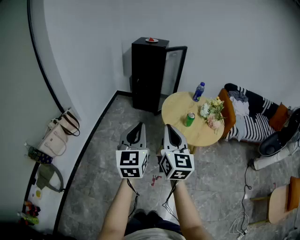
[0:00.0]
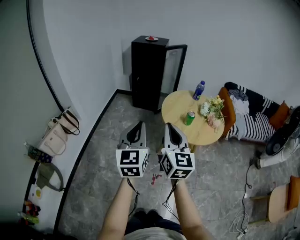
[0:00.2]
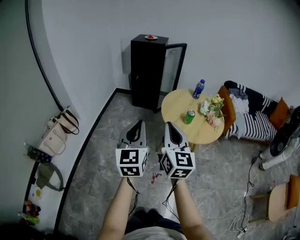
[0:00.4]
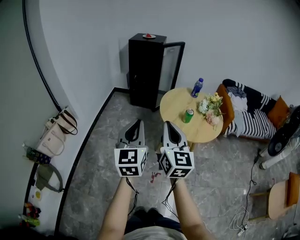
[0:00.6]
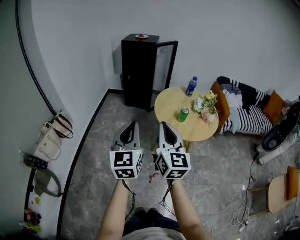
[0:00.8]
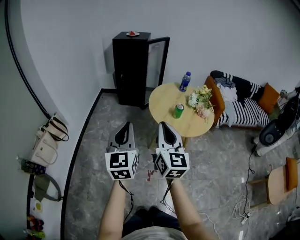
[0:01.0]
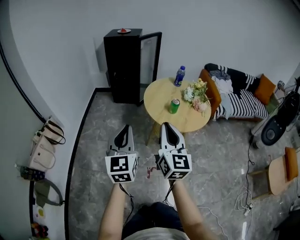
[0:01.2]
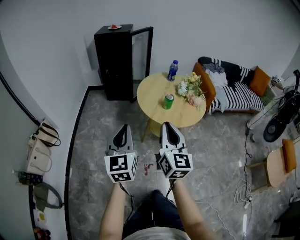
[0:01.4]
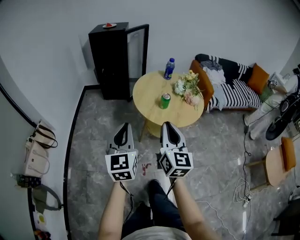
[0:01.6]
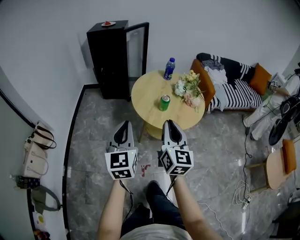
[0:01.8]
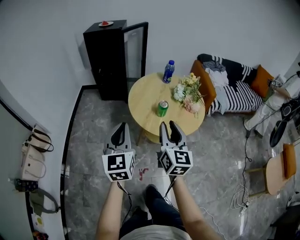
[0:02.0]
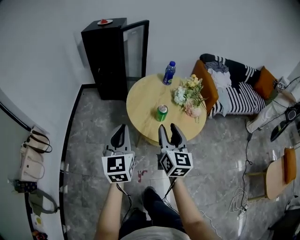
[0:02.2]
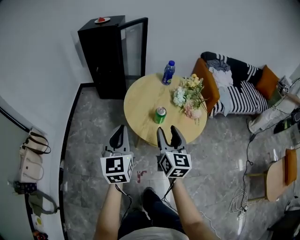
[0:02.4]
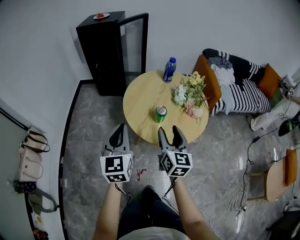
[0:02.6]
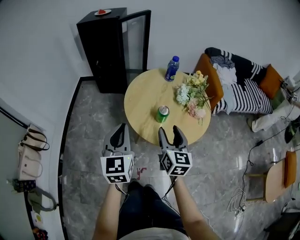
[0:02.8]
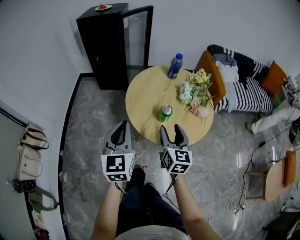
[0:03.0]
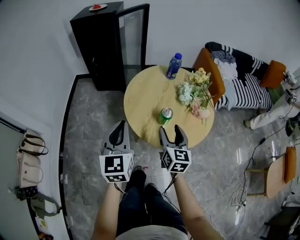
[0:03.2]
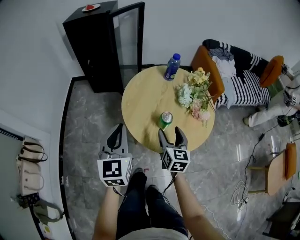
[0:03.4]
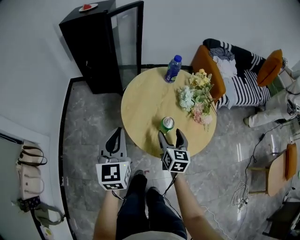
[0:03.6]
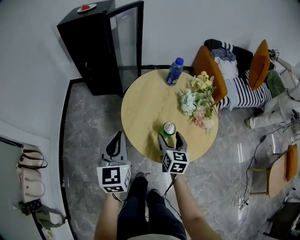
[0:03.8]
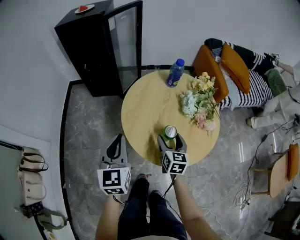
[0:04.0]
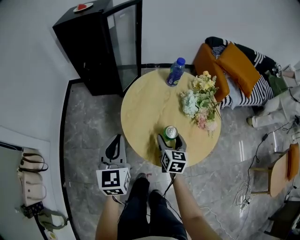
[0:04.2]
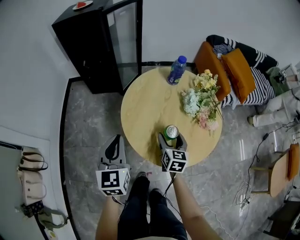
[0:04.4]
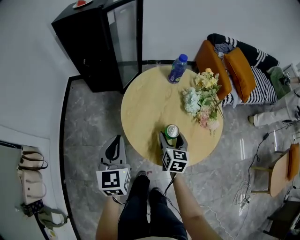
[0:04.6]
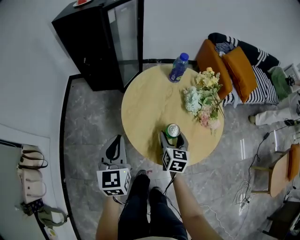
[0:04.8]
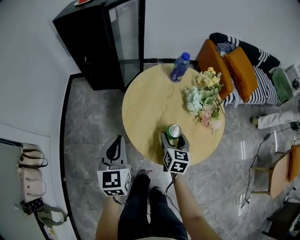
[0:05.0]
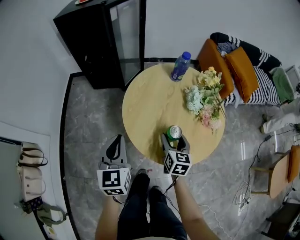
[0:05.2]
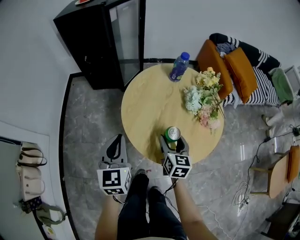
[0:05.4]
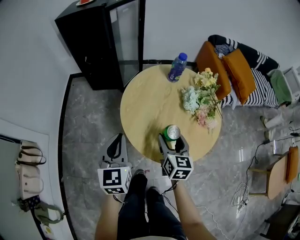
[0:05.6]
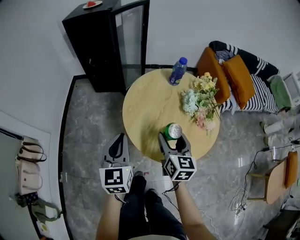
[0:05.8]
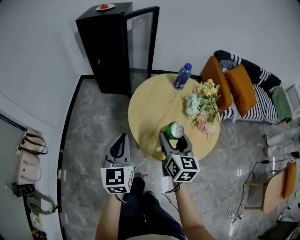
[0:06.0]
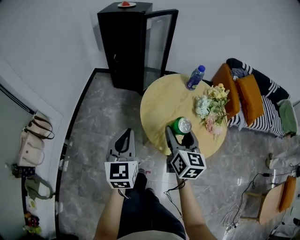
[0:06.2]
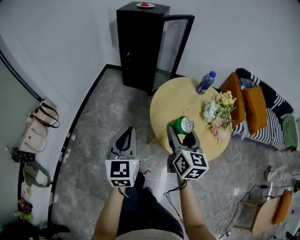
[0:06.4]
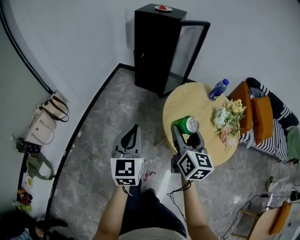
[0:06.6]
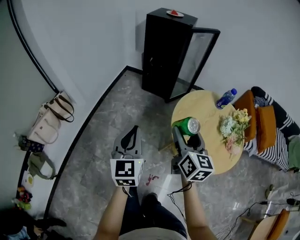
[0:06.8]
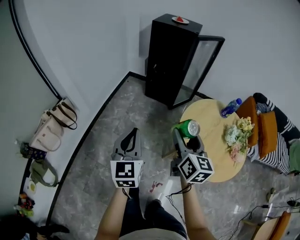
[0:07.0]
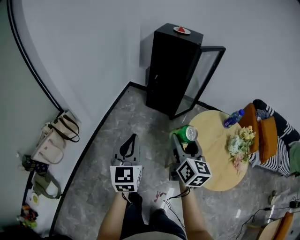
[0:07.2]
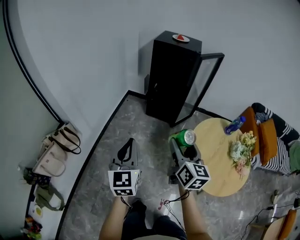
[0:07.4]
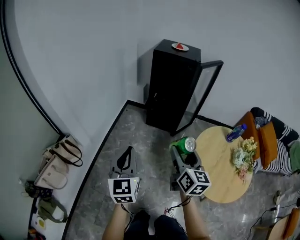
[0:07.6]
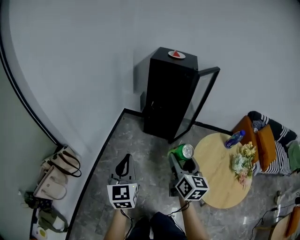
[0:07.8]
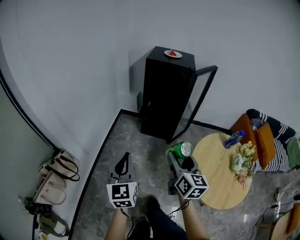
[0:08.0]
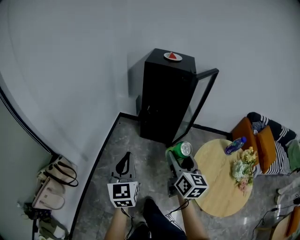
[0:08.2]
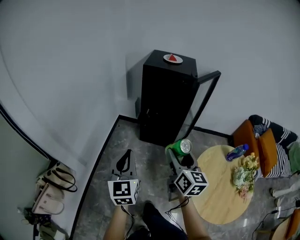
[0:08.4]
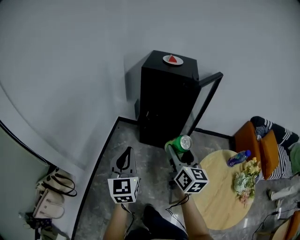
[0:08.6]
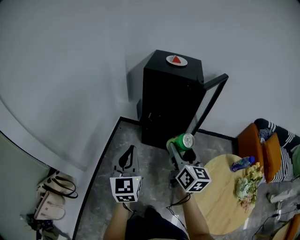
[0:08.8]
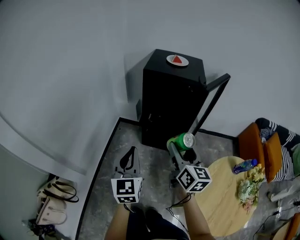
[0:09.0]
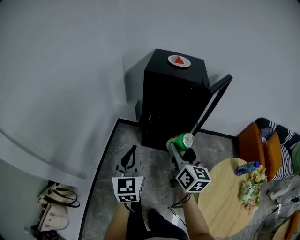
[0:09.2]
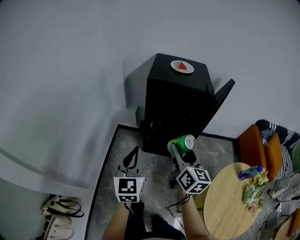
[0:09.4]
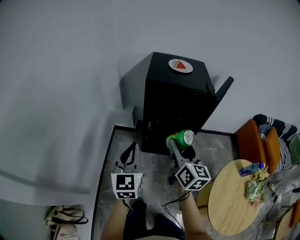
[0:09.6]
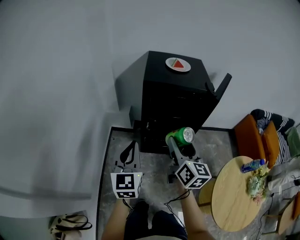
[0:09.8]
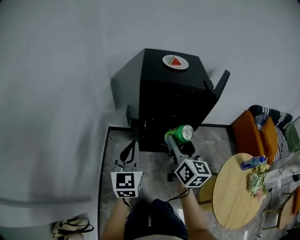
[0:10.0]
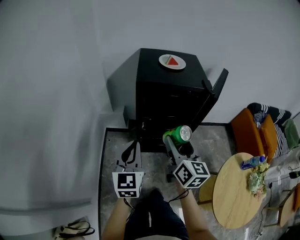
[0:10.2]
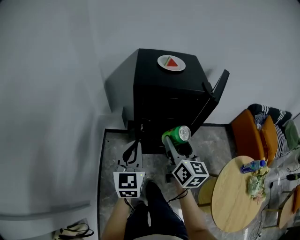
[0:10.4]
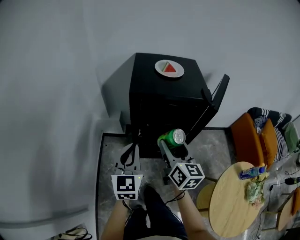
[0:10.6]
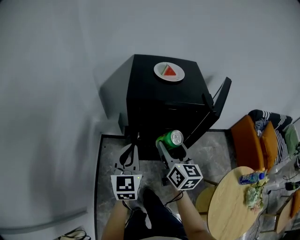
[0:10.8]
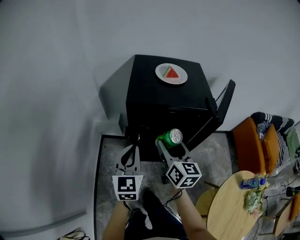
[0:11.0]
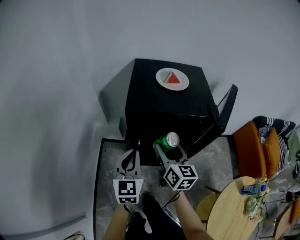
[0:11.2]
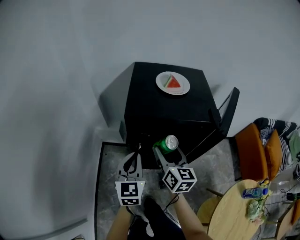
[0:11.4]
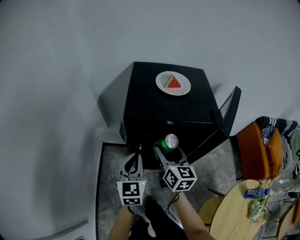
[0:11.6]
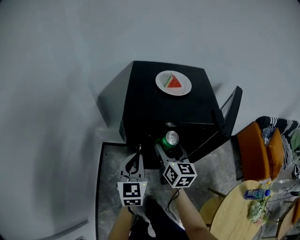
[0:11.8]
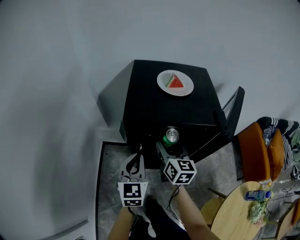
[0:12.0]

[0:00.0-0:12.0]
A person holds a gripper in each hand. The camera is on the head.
0:00.0 to 0:01.6: The right gripper heads to the right and downward, covering approximately 10 cm. Meanwhile the left gripper goes some 10 cm downward and to the right.
0:01.6 to 0:03.0: The left gripper moves forward, some 20 cm. Meanwhile the right gripper heads forward and downward, covering roughly 25 cm, and opens its fingers.
0:03.0 to 0:04.4: The right gripper shifts roughly 20 cm downward and forward. The left gripper moves forward and downward, approximately 15 cm.
0:04.4 to 0:06.0: The left gripper travels backward by about 5 cm, while the right gripper goes about 15 cm upward.
0:06.0 to 0:07.6: The left gripper goes roughly 35 cm to the left. Meanwhile the right gripper goes some 35 cm to the left and forward.
0:07.6 to 0:09.0: Both grippers travel together forward, about 30 cm.
0:09.0 to 0:10.4: Both grippers move forward, about 20 cm.
0:10.4 to 0:12.0: Both grippers move forward and downward, approximately 20 cm.

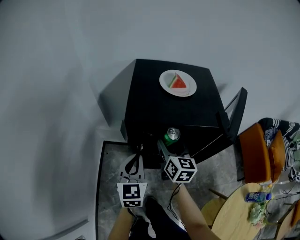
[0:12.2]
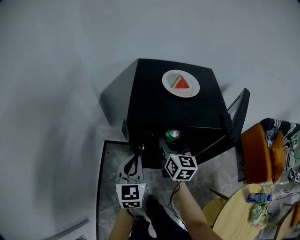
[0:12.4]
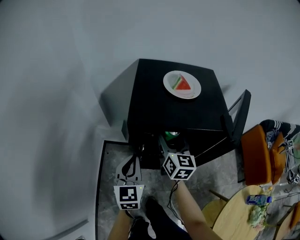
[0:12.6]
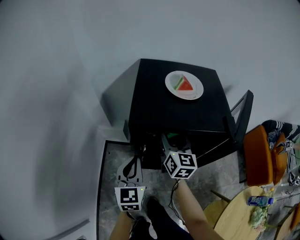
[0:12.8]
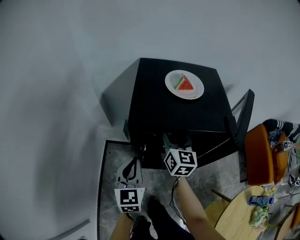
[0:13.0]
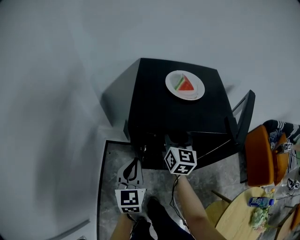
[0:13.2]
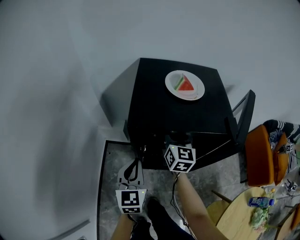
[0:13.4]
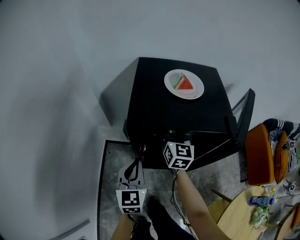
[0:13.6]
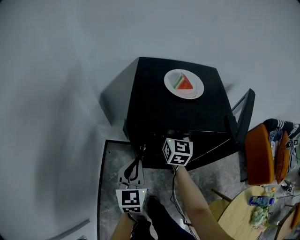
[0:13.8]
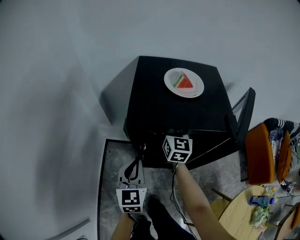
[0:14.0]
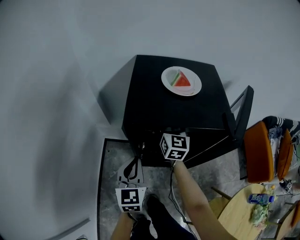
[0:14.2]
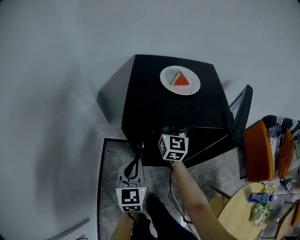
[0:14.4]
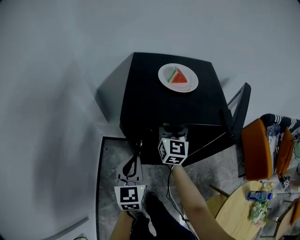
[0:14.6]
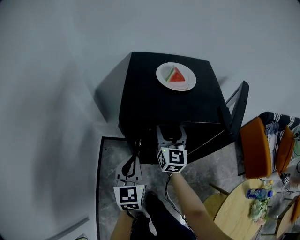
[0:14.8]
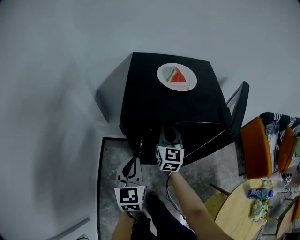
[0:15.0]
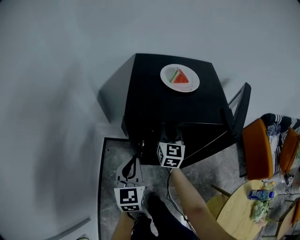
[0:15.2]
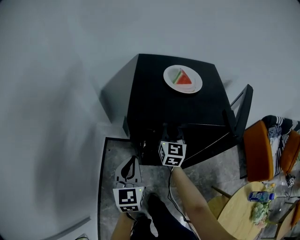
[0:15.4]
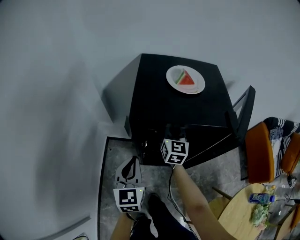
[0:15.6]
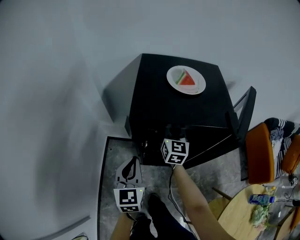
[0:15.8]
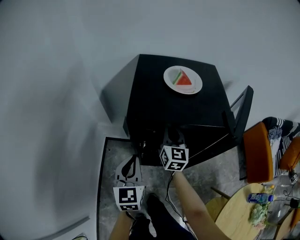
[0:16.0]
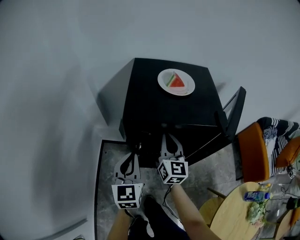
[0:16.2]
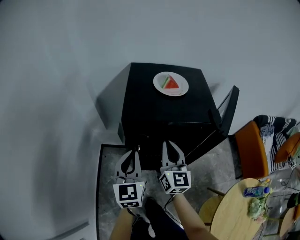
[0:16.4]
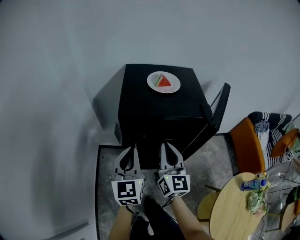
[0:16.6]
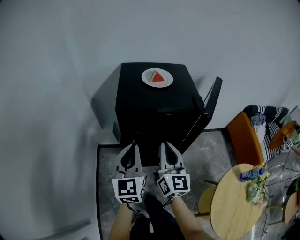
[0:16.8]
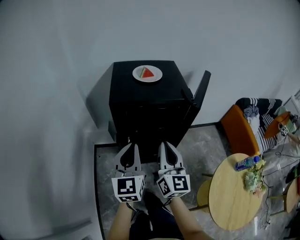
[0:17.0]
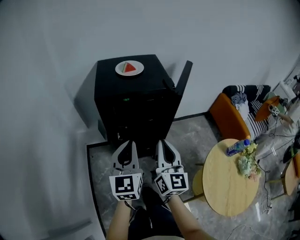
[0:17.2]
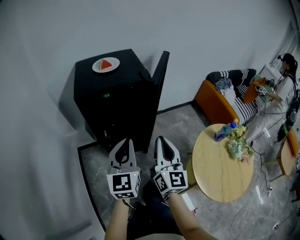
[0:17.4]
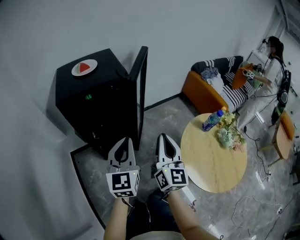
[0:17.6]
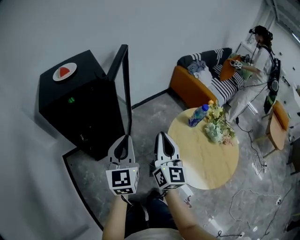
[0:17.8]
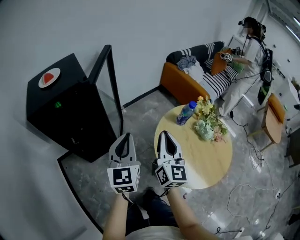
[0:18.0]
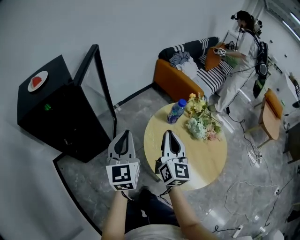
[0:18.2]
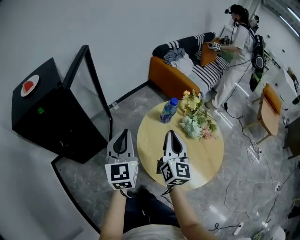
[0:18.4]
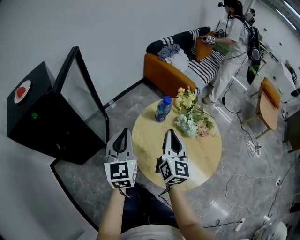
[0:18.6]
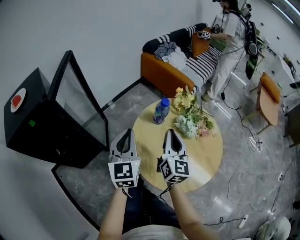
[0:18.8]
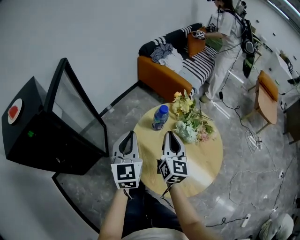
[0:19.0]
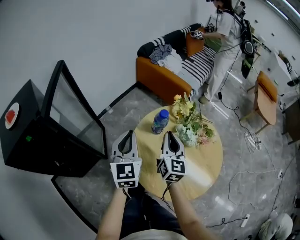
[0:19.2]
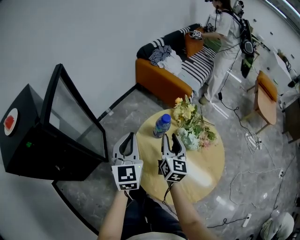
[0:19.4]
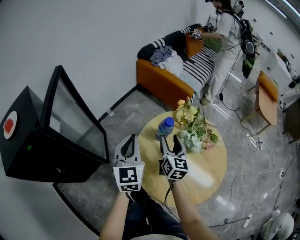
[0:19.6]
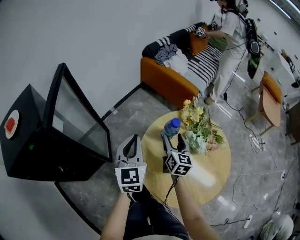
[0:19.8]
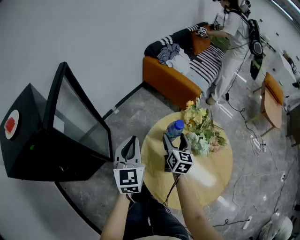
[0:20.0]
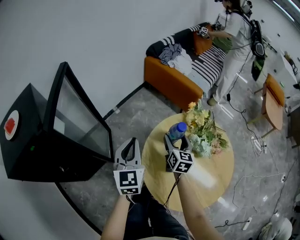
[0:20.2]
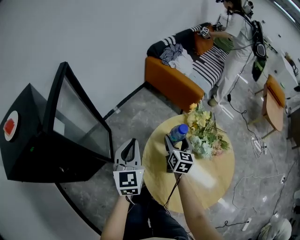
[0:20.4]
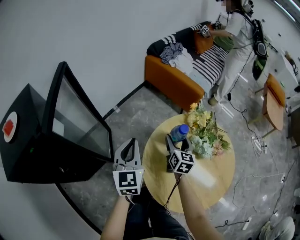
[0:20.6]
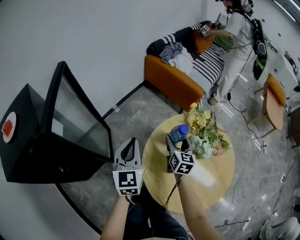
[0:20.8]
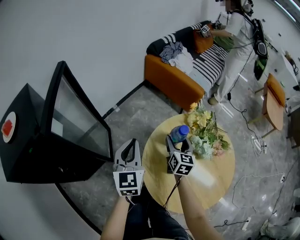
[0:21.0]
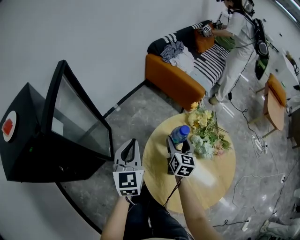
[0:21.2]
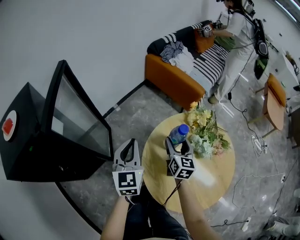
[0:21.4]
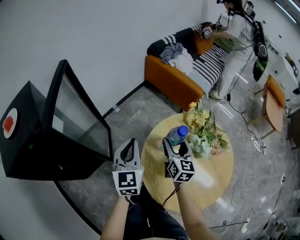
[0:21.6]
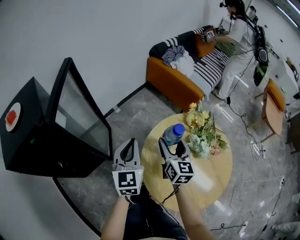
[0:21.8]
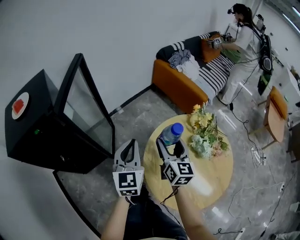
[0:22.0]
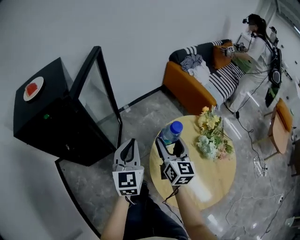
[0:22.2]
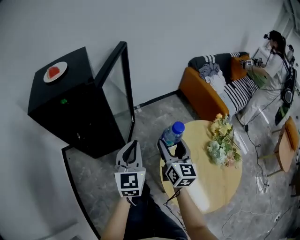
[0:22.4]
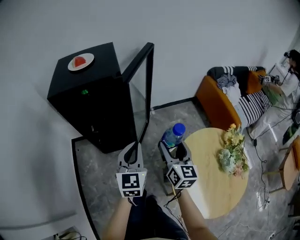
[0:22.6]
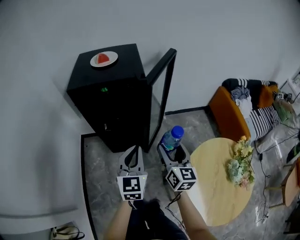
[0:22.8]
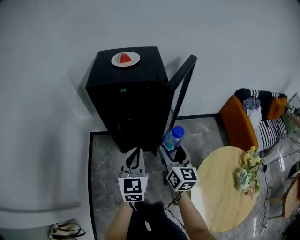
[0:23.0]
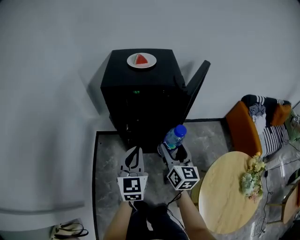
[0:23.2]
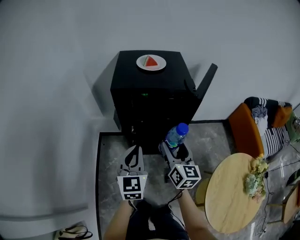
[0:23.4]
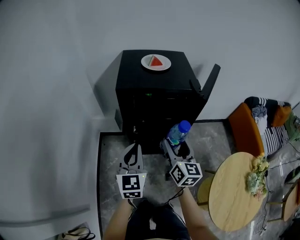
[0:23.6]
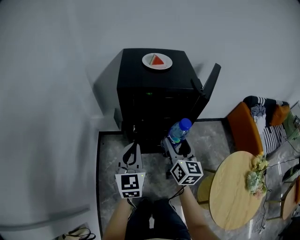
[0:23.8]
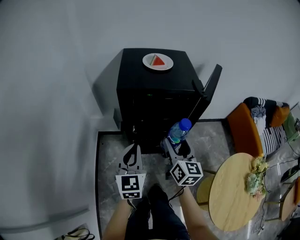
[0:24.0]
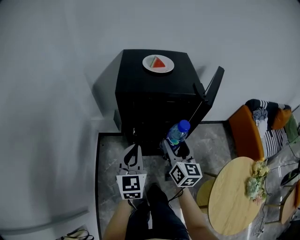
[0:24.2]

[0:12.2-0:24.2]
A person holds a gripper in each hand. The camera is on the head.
0:12.2 to 0:13.8: The right gripper travels forward by roughly 10 cm.
0:13.8 to 0:15.2: The right gripper closes its fingers.
0:15.2 to 0:16.6: The right gripper goes about 20 cm backward and upward, while the left gripper goes roughly 10 cm upward.
0:16.6 to 0:18.2: The two grippers travel together, roughly 50 cm. The left gripper rotates some 40 degrees. Meanwhile the right gripper rotates roughly 40 degrees.
0:18.2 to 0:19.8: The right gripper moves forward, downward and to the right, roughly 25 cm, turns by about 20 degrees, and opens its fingers, while the left gripper goes approximately 15 cm forward and to the right.
0:19.8 to 0:21.2: The grippers make only small movements.
0:21.2 to 0:22.6: The right gripper changes place by roughly 30 cm, and changes its angle by approximately 40 degrees, while the left gripper ends up some 25 cm from where it was, and rotates about 30 degrees.
0:22.6 to 0:24.2: The right gripper goes some 30 cm to the left and forward. Meanwhile the left gripper goes approximately 30 cm to the left.
